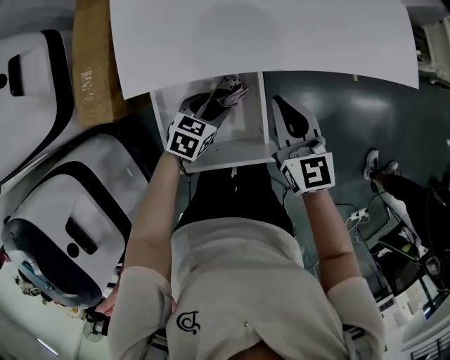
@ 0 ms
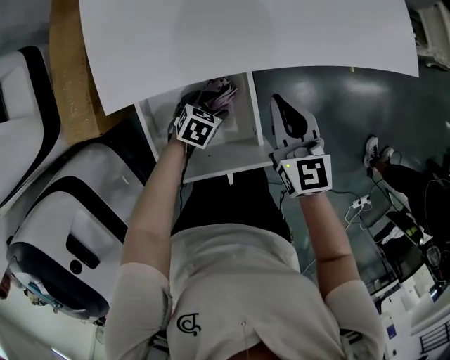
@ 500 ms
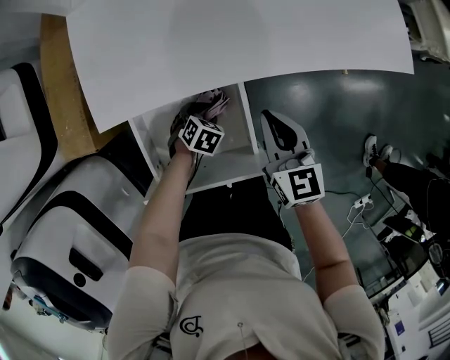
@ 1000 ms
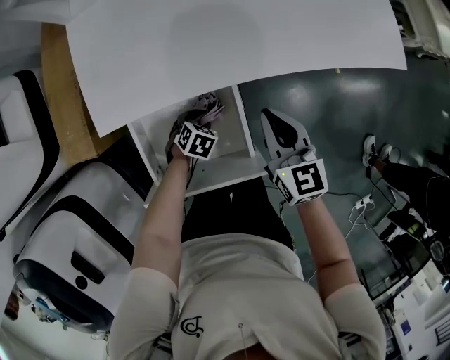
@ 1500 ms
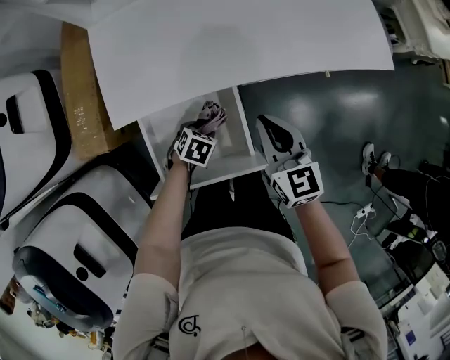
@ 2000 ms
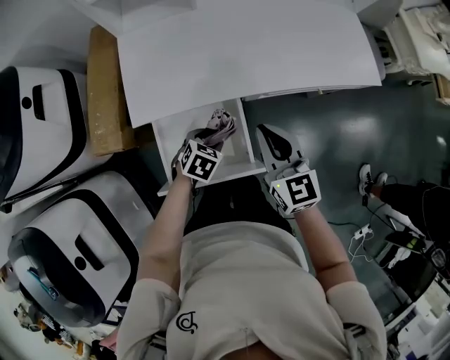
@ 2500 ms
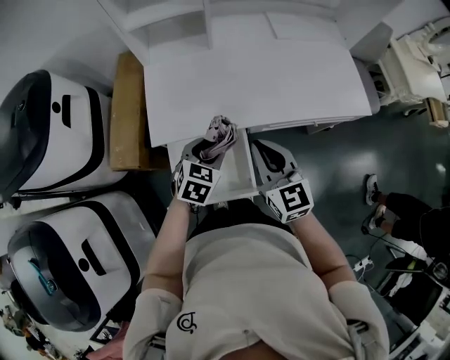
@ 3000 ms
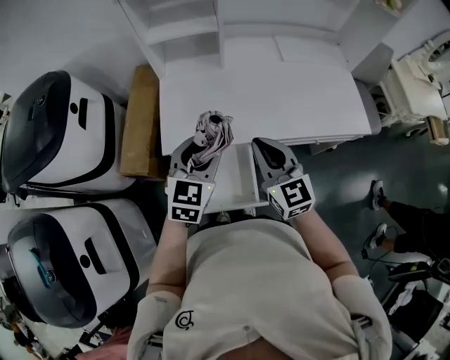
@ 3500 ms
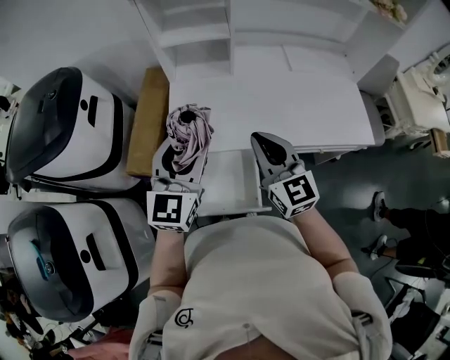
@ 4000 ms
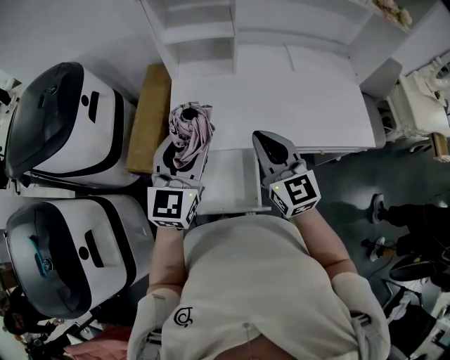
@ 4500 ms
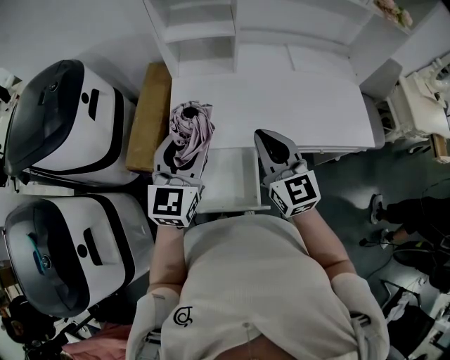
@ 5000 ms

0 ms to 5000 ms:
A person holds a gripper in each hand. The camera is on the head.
0 ms to 2500 ms: The right gripper goes some 10 cm upward. Meanwhile the left gripper moves approximately 10 cm downward and comes back, and opens and closes again.
2500 ms to 5000 ms: The left gripper goes approximately 35 cm upward, and tips its fingers upward by about 60 degrees, while the right gripper shifts approximately 15 cm upward and to the left.

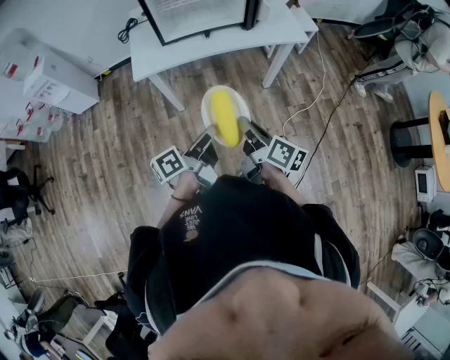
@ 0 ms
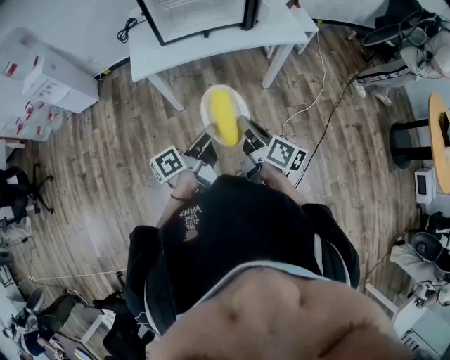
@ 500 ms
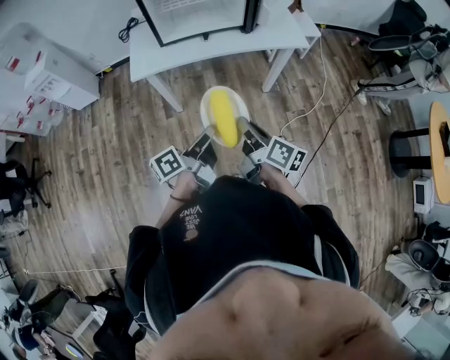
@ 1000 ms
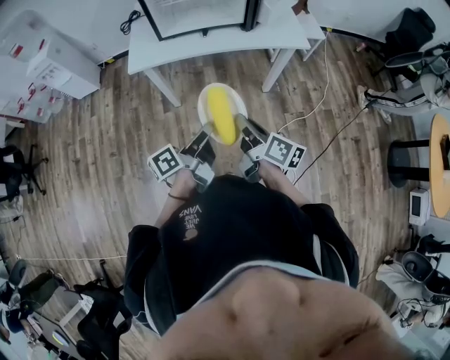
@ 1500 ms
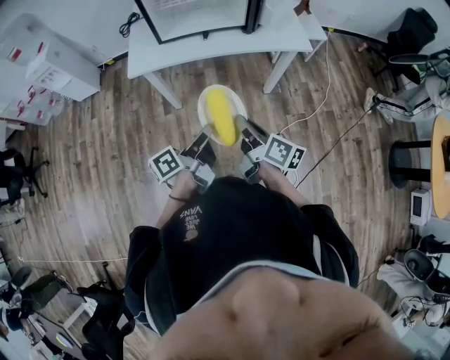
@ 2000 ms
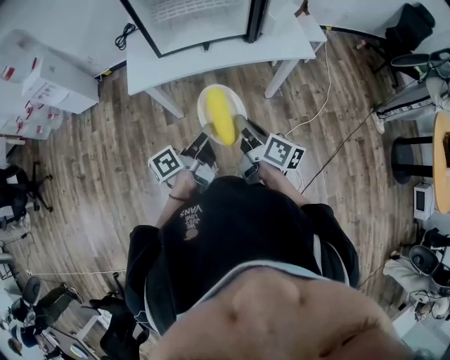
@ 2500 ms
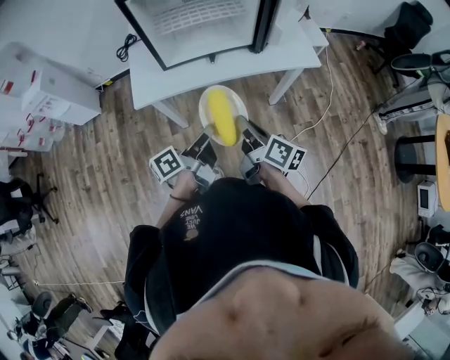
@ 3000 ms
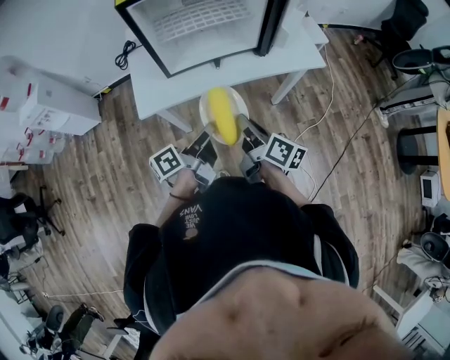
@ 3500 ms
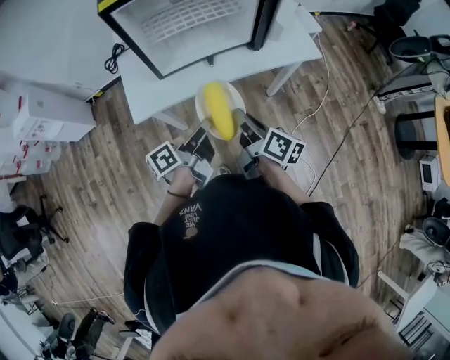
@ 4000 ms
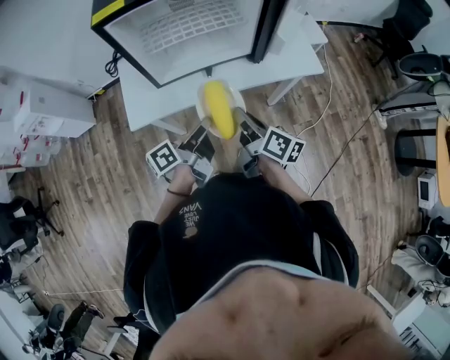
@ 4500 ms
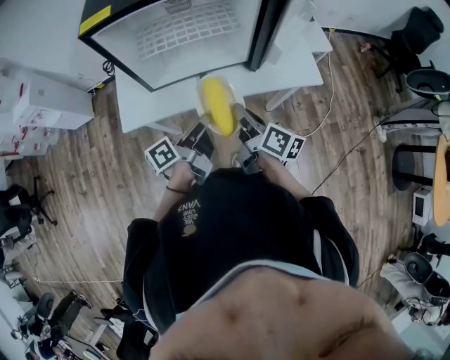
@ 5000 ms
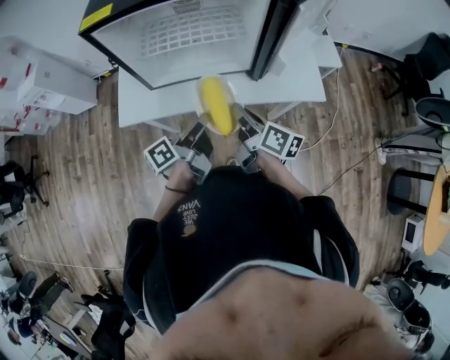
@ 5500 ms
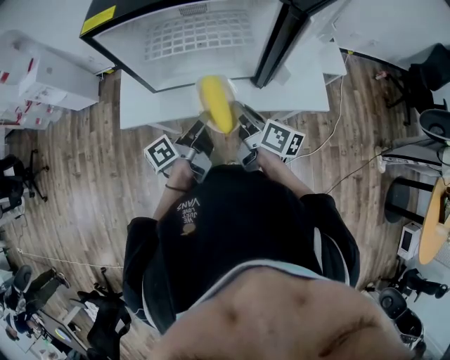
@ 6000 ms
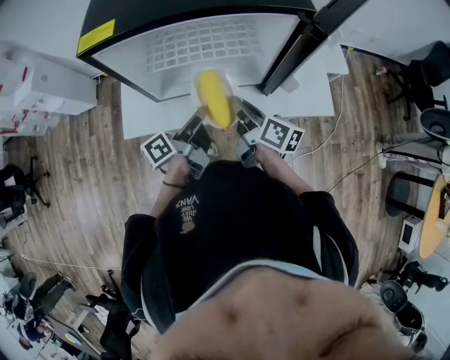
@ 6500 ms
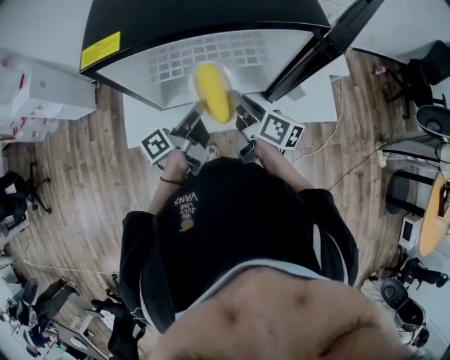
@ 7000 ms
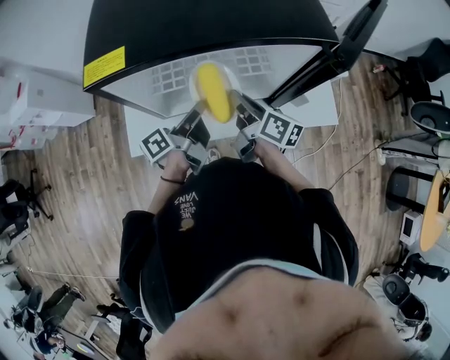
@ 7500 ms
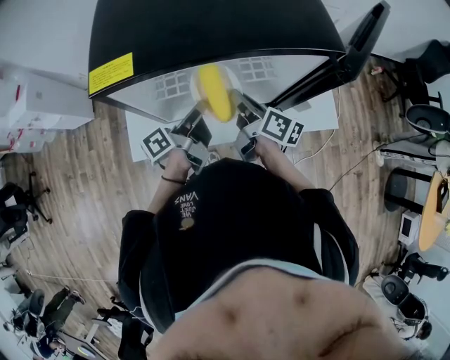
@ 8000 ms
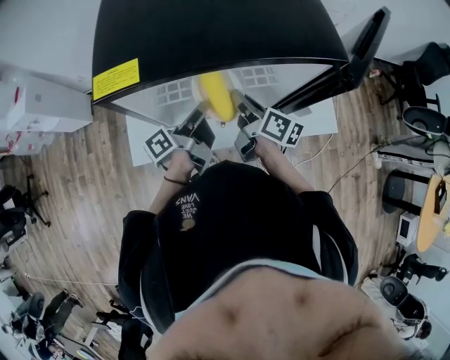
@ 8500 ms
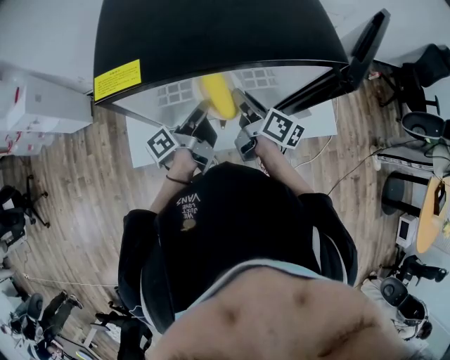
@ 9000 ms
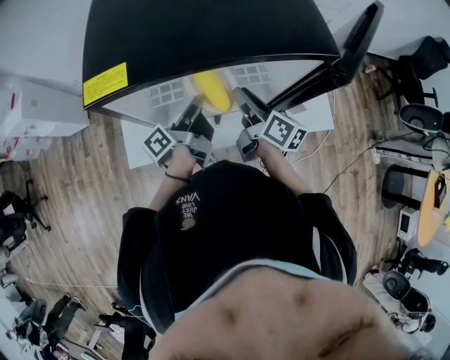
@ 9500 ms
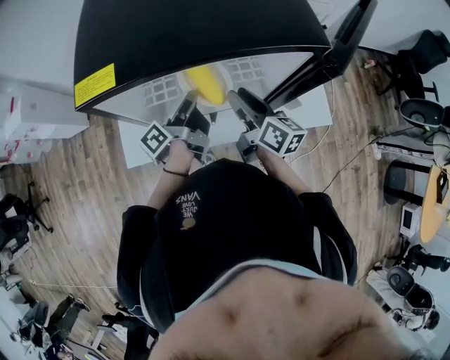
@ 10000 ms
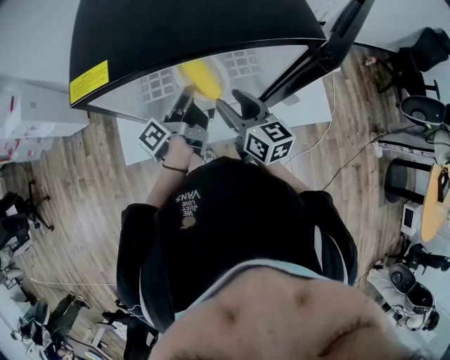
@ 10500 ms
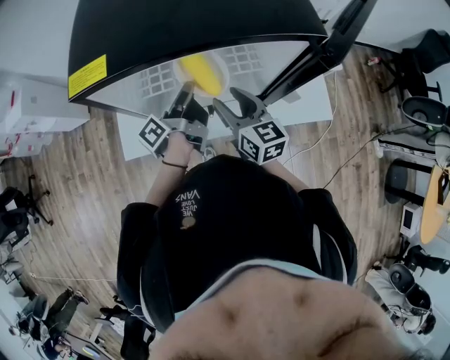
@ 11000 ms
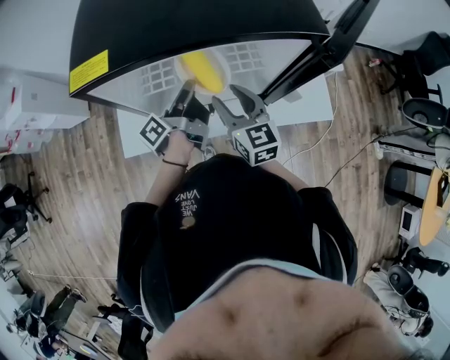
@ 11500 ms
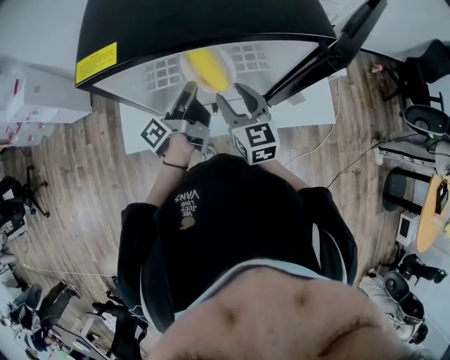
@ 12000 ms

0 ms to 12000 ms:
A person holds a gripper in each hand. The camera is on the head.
0 ms to 2000 ms: The left gripper moves some 5 cm. Meanwhile the right gripper moves some 5 cm.
2000 ms to 4000 ms: Both grippers travel together forward and to the left, roughly 20 cm.
4000 ms to 6000 ms: The right gripper goes approximately 15 cm forward. The left gripper goes some 15 cm forward and to the right.
6000 ms to 8000 ms: Both grippers travel together forward, about 15 cm.
8000 ms to 10000 ms: The right gripper opens.
10000 ms to 12000 ms: The right gripper turns by approximately 40 degrees.

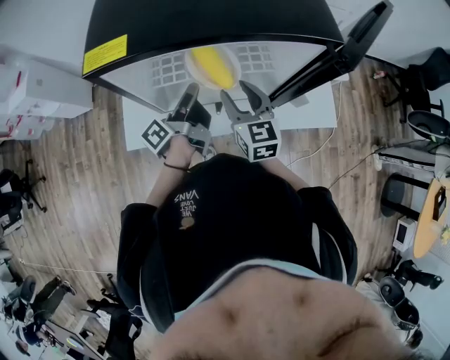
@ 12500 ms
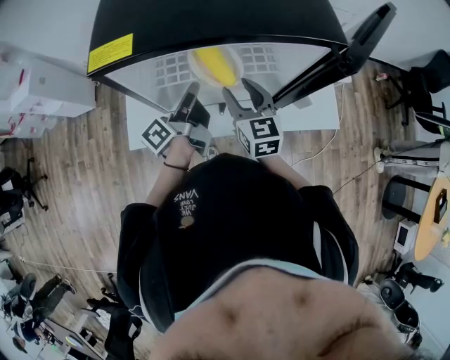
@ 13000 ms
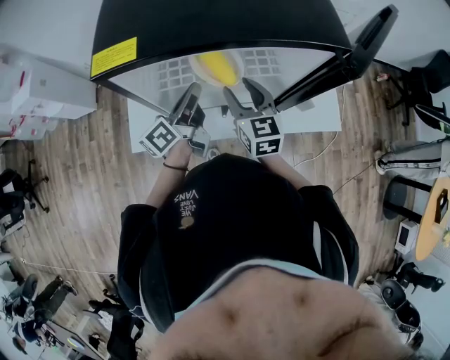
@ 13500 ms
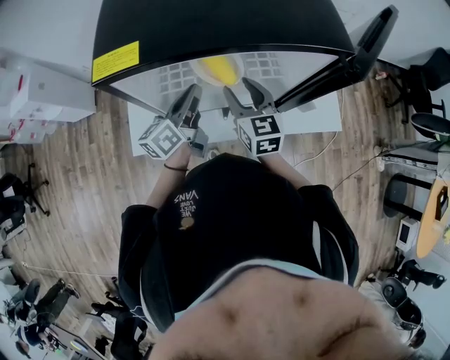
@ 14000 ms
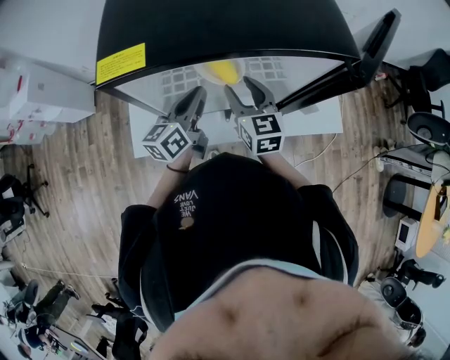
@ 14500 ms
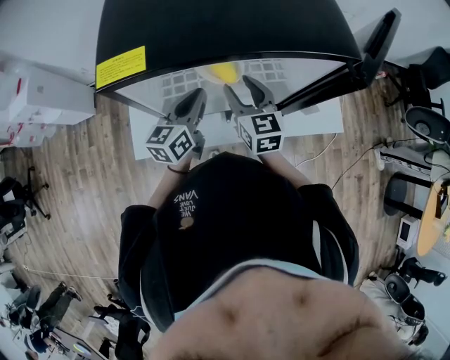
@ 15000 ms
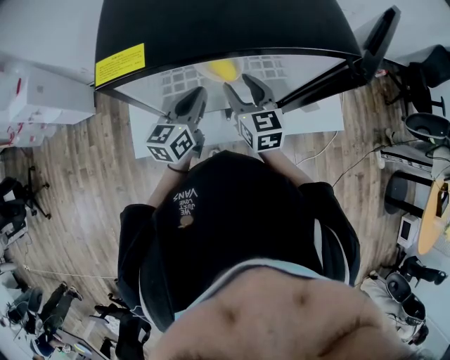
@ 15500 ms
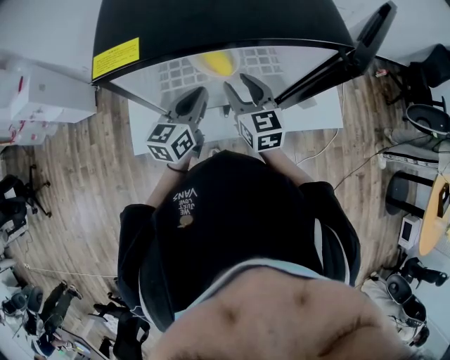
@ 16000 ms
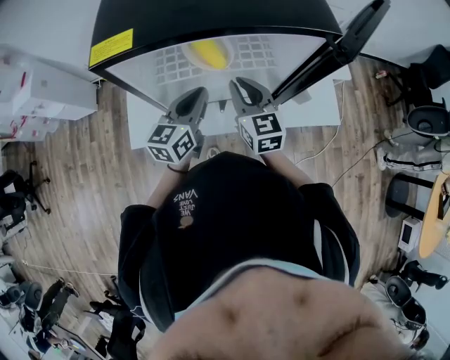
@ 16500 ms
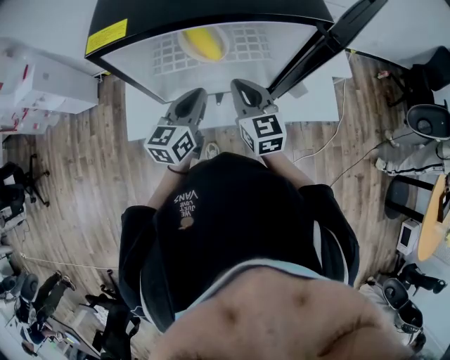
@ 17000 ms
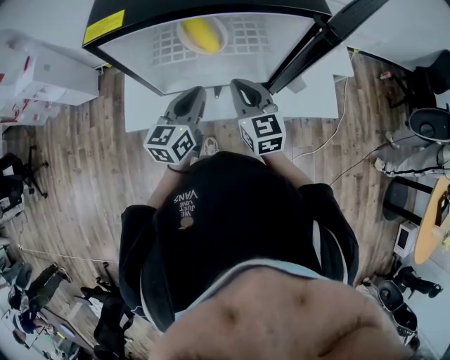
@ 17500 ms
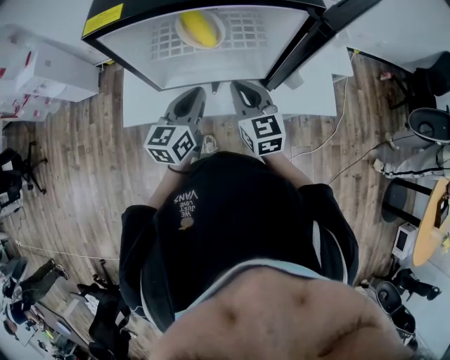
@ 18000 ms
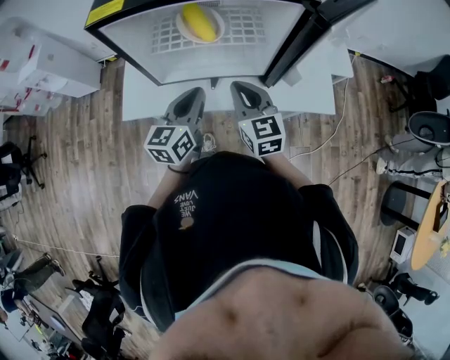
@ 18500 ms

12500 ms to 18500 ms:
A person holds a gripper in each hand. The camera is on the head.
12500 ms to 14500 ms: The left gripper rolls clockwise, seen from behind, by roughly 50 degrees.
14500 ms to 16500 ms: The left gripper shifts by roughly 5 cm, while the right gripper closes its fingers.
16500 ms to 18500 ms: Both grippers travel together backward, roughly 10 cm.

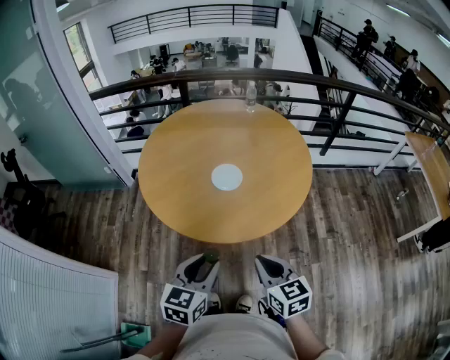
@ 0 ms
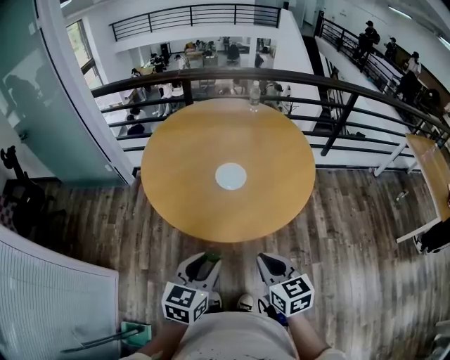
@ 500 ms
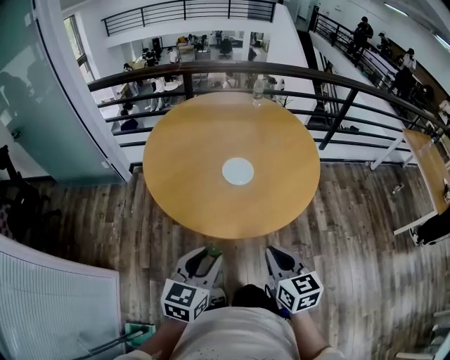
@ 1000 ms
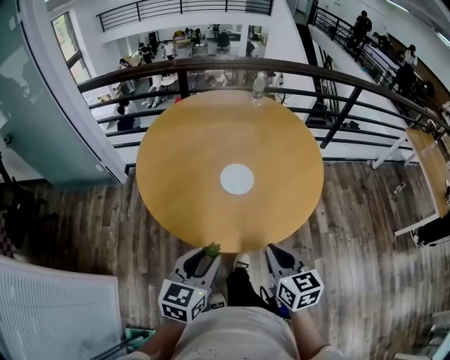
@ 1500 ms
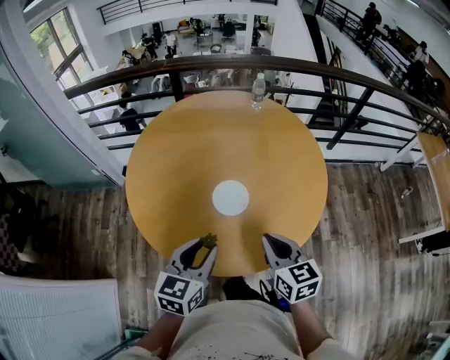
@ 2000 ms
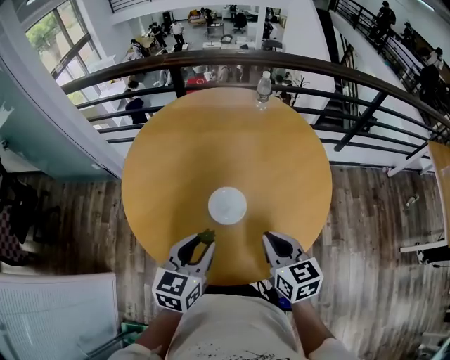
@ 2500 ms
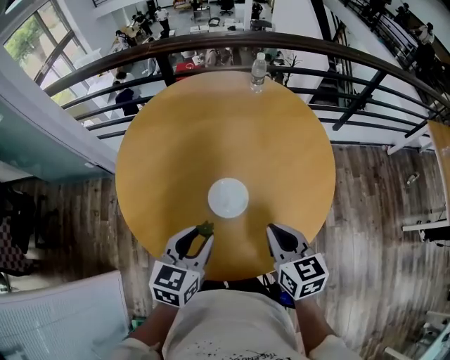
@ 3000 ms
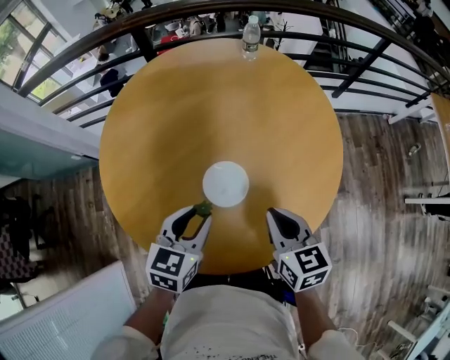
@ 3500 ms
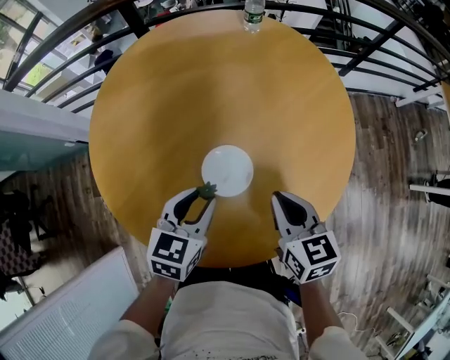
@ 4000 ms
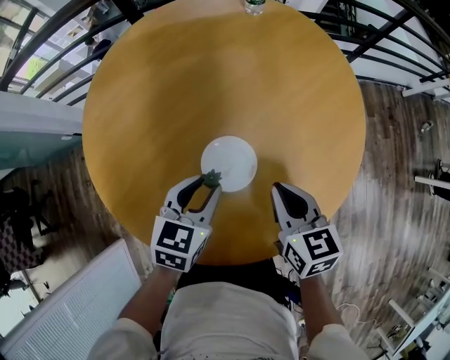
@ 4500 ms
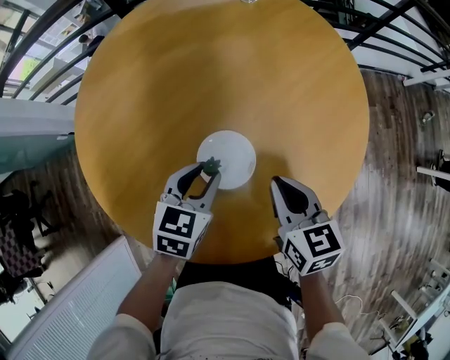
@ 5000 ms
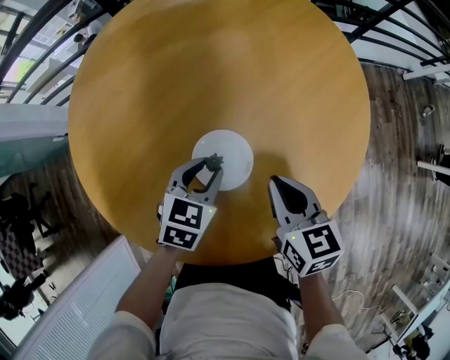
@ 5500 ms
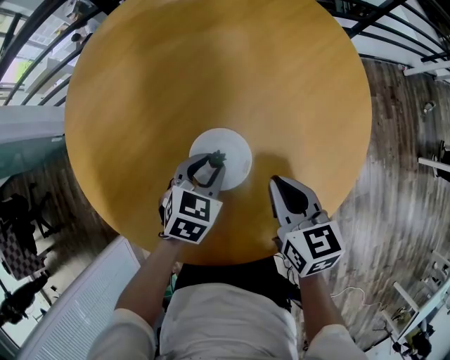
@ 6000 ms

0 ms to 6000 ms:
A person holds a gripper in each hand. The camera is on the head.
0 ms to 2000 ms: Both grippers move forward, roughly 25 cm.
2000 ms to 4000 ms: Both grippers travel together forward and downward, roughly 20 cm.
4000 ms to 6000 ms: The right gripper travels downward by some 5 cm, while the left gripper shifts roughly 15 cm downward and forward, and changes its angle by approximately 20 degrees.
